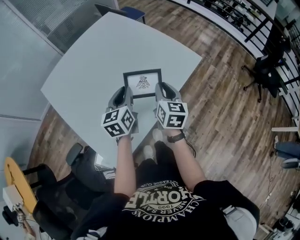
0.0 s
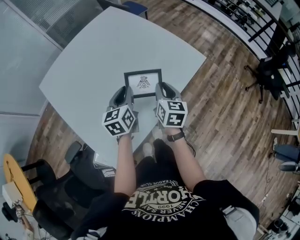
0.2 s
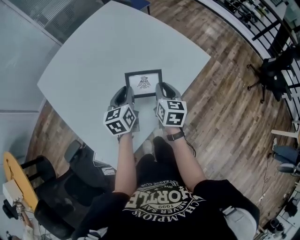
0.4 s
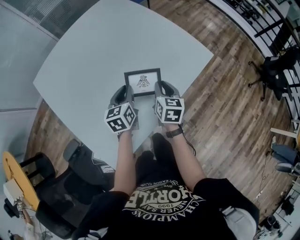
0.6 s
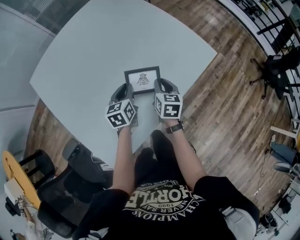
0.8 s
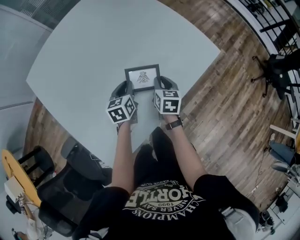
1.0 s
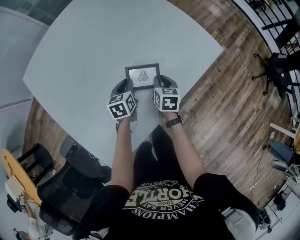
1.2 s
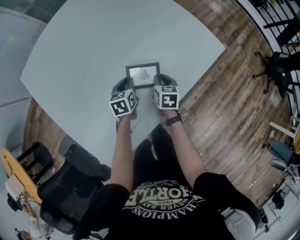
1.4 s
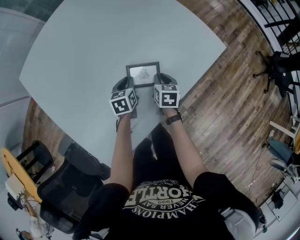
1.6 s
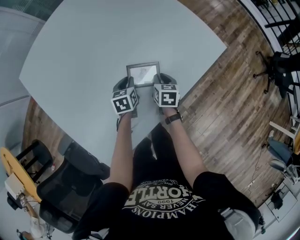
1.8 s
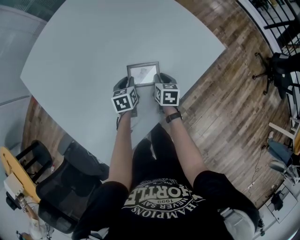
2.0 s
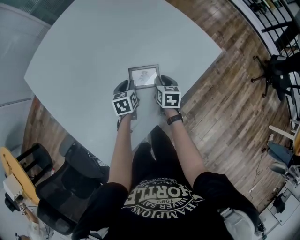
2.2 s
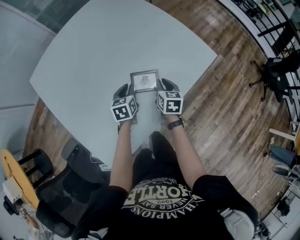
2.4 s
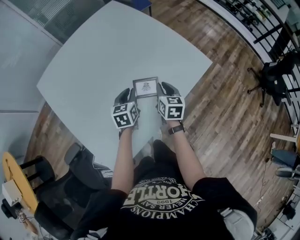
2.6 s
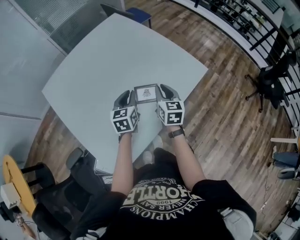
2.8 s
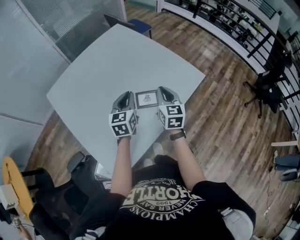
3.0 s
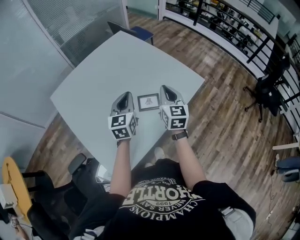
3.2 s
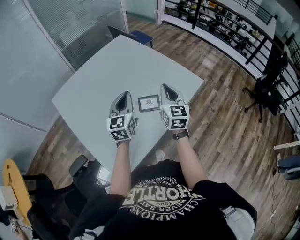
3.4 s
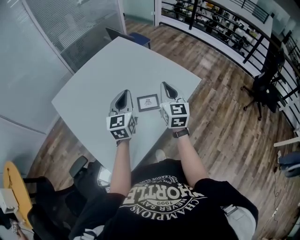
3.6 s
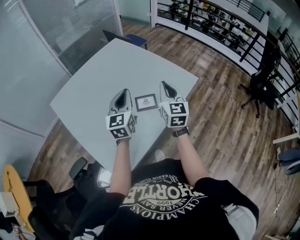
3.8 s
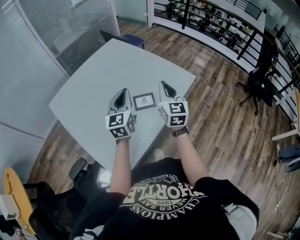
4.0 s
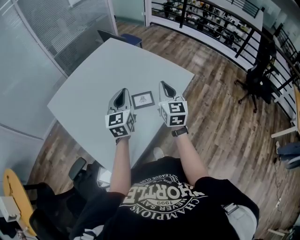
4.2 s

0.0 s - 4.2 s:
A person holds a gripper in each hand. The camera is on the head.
0.0 s - 1.4 s: The grippers both shift downward and forward by about 35 cm. The right gripper swivels some 30 degrees. The left gripper changes its angle by roughly 30 degrees.
1.4 s - 2.8 s: Both grippers travel together upward, roughly 25 cm. The right gripper turns by approximately 30 degrees, while the left gripper turns by some 20 degrees.
2.8 s - 4.2 s: The grippers both shift upward and backward by about 20 cm. The right gripper rotates roughly 20 degrees, while the left gripper rotates about 20 degrees.

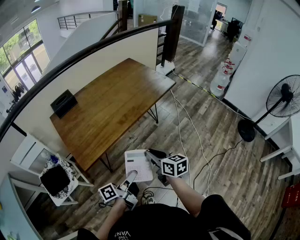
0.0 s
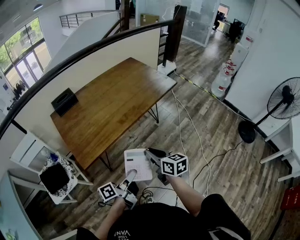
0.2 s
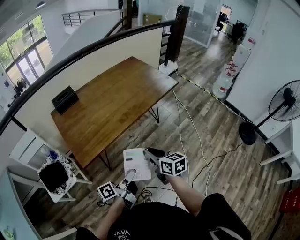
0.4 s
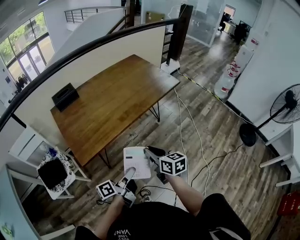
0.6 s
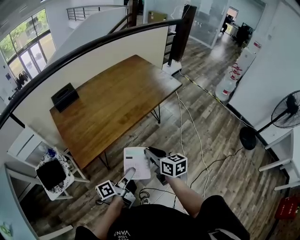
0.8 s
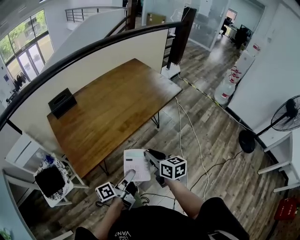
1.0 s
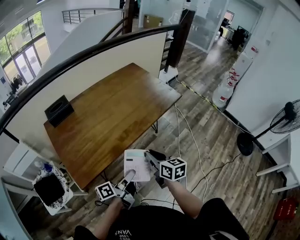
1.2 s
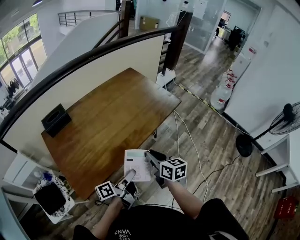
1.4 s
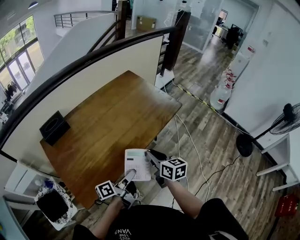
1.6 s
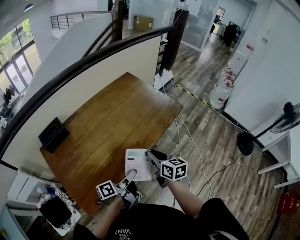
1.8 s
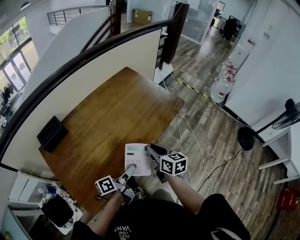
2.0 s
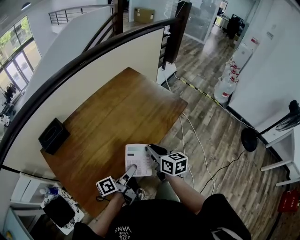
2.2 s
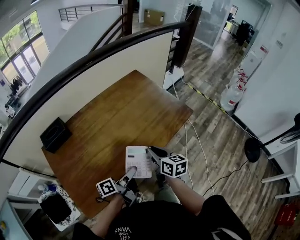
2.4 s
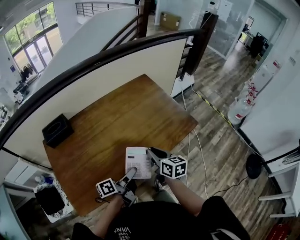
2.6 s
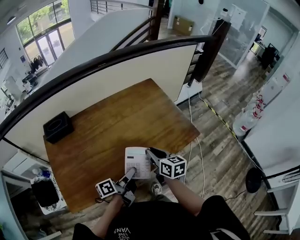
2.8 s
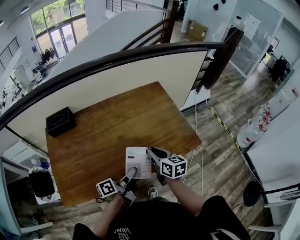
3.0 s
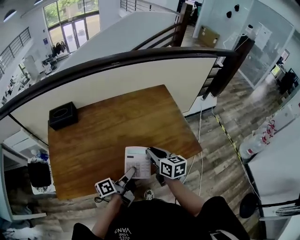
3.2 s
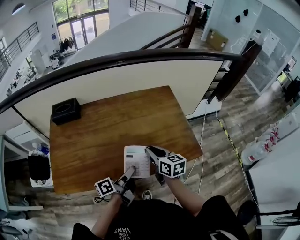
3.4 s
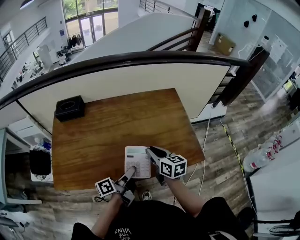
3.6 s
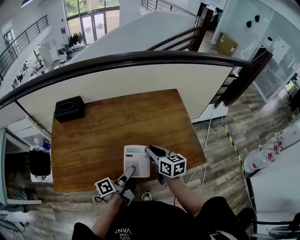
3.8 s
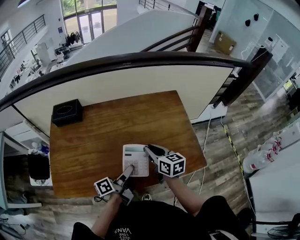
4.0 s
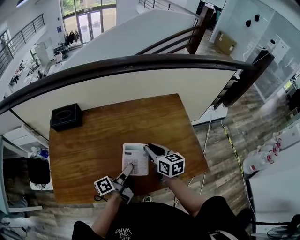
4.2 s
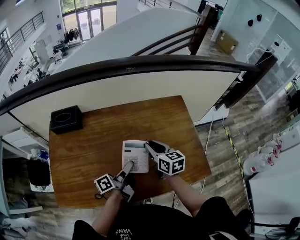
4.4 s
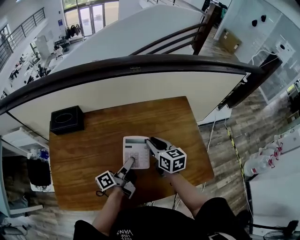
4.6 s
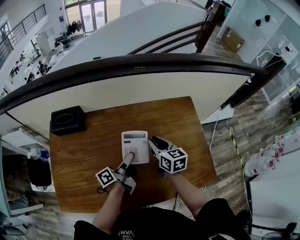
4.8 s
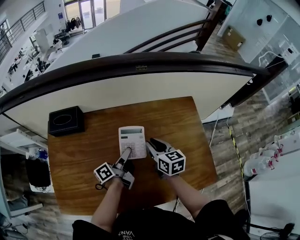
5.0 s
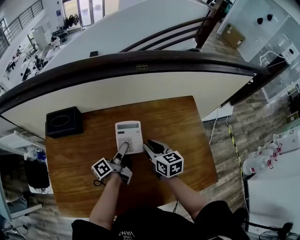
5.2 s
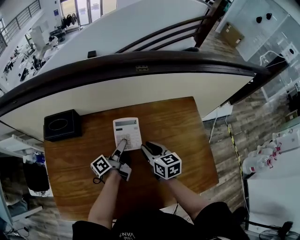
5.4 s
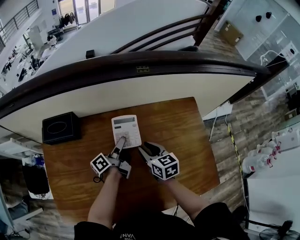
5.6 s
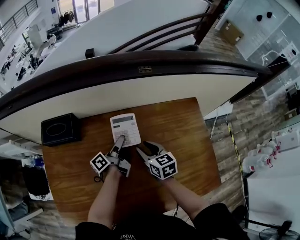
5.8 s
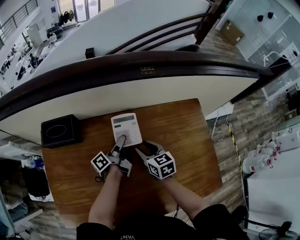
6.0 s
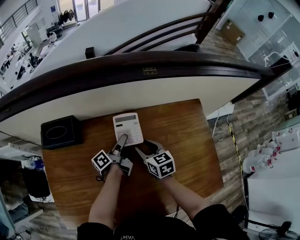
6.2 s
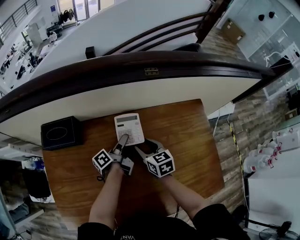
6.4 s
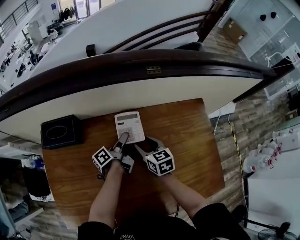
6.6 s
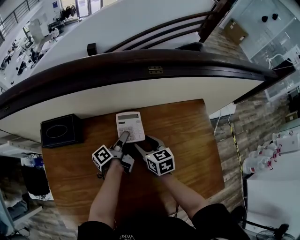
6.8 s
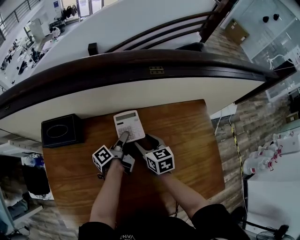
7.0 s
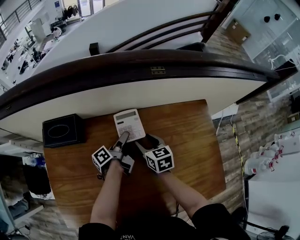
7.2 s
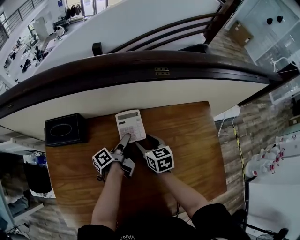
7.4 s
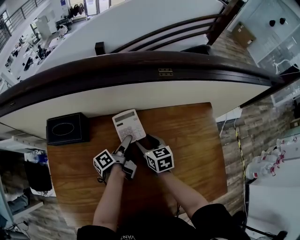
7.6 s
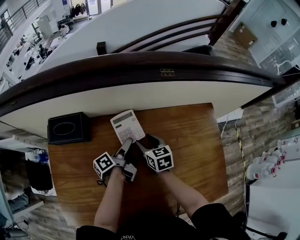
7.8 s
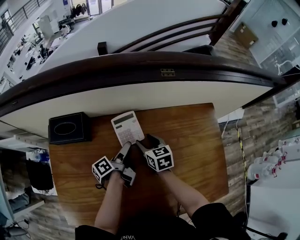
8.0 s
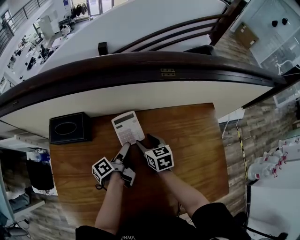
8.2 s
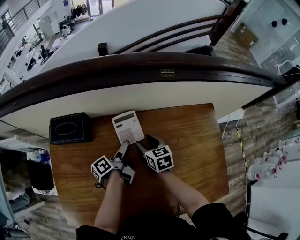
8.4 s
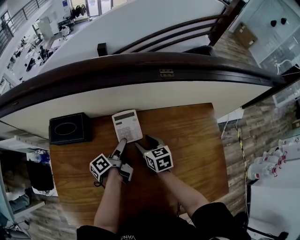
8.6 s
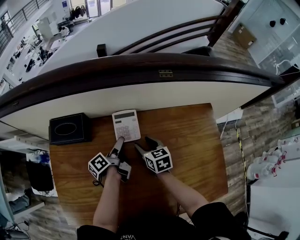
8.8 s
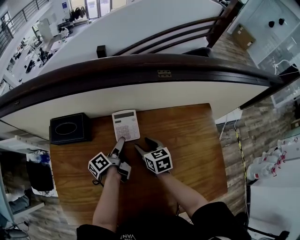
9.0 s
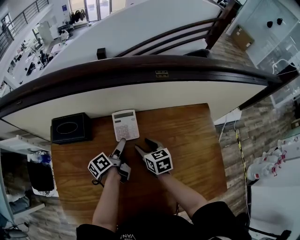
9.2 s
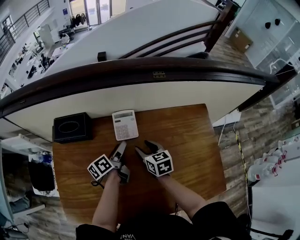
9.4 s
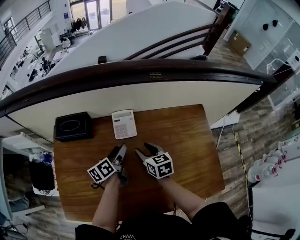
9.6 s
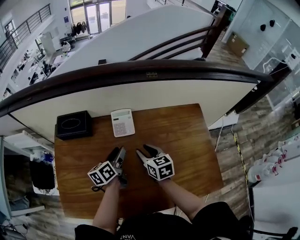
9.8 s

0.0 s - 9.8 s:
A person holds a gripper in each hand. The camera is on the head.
0.0 s - 1.4 s: The right gripper shifts by roughly 20 cm.
1.4 s - 2.8 s: The right gripper changes place by roughly 25 cm.
2.8 s - 4.2 s: The right gripper changes place by approximately 15 cm, and rotates about 20 degrees.
4.2 s - 5.6 s: The right gripper ends up roughly 15 cm from where it was.
5.6 s - 7.0 s: The right gripper shifts by approximately 10 cm, and opens its fingers.
8.4 s - 9.8 s: The right gripper moves approximately 15 cm.

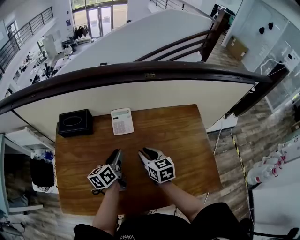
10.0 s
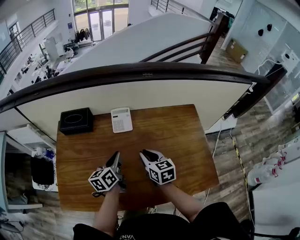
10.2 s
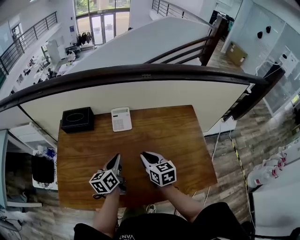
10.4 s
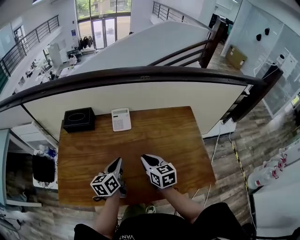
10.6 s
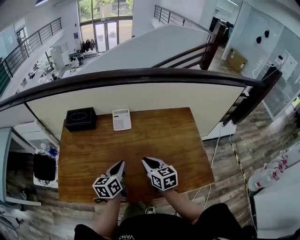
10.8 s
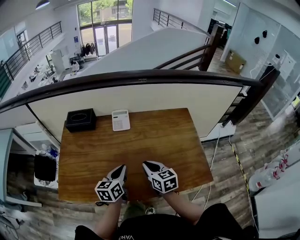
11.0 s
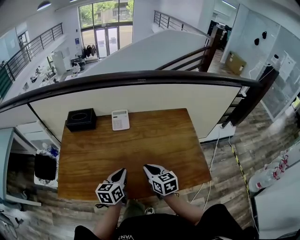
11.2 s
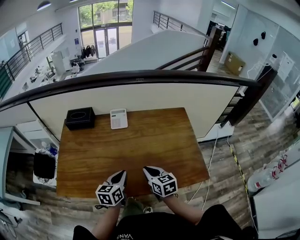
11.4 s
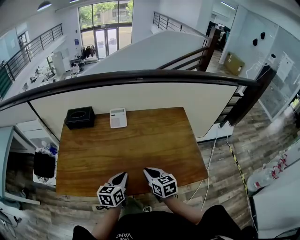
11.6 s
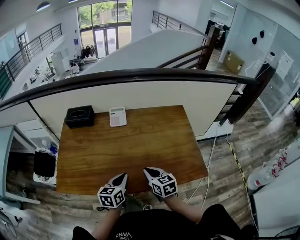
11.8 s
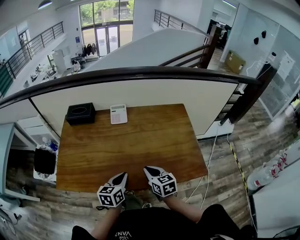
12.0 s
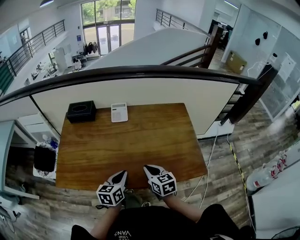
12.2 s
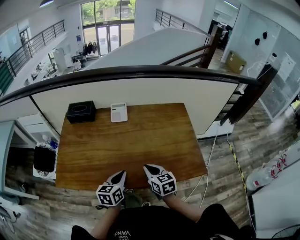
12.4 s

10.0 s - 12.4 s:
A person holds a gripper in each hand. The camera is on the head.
10.0 s - 11.2 s: The right gripper ends up approximately 20 cm from where it was.
11.2 s - 12.4 s: The right gripper shifts by approximately 5 cm.

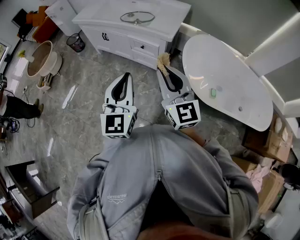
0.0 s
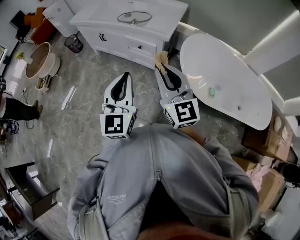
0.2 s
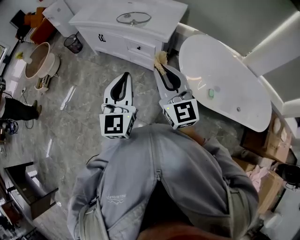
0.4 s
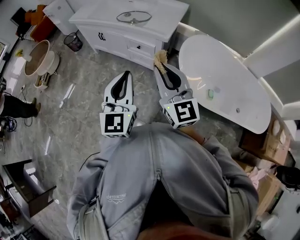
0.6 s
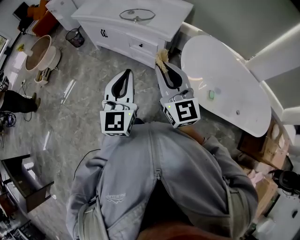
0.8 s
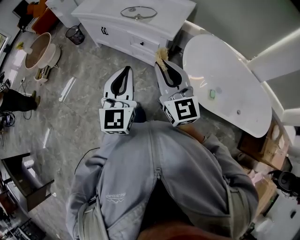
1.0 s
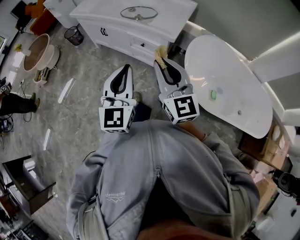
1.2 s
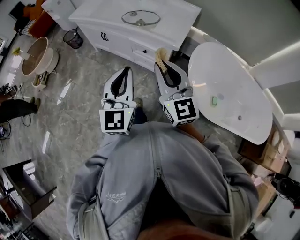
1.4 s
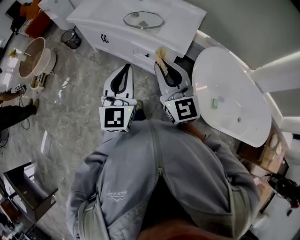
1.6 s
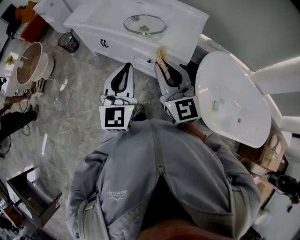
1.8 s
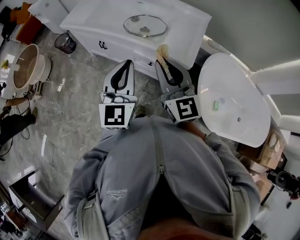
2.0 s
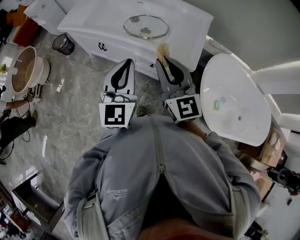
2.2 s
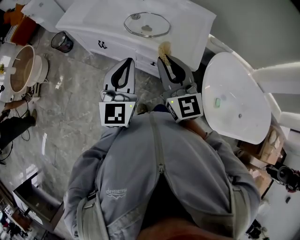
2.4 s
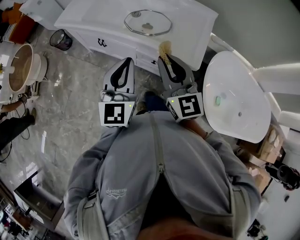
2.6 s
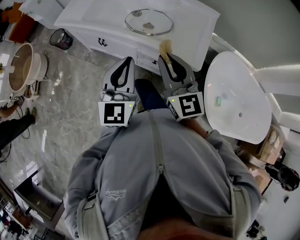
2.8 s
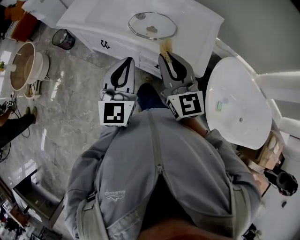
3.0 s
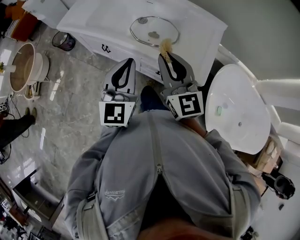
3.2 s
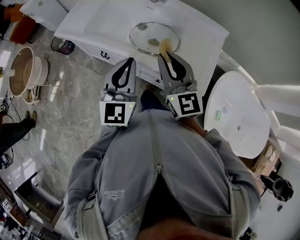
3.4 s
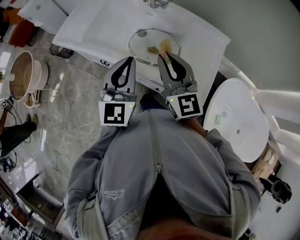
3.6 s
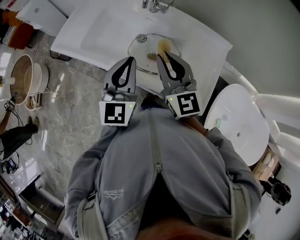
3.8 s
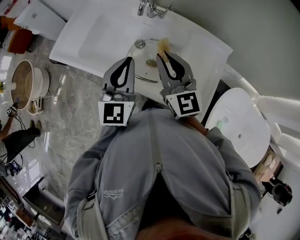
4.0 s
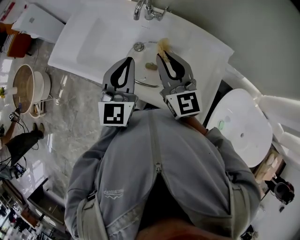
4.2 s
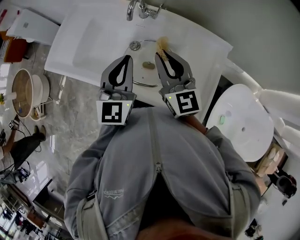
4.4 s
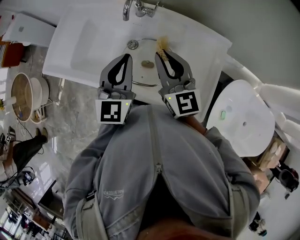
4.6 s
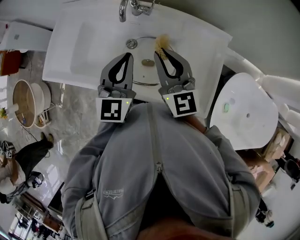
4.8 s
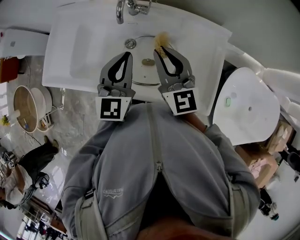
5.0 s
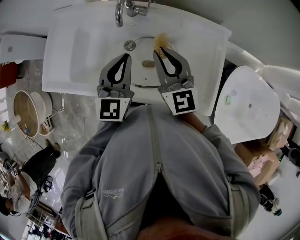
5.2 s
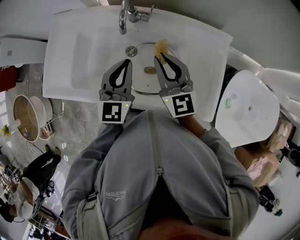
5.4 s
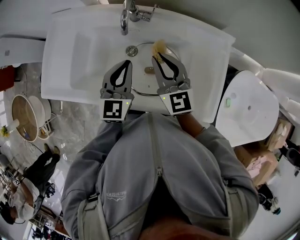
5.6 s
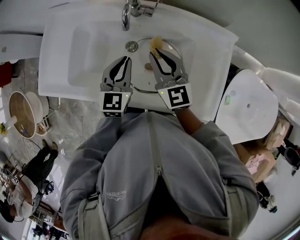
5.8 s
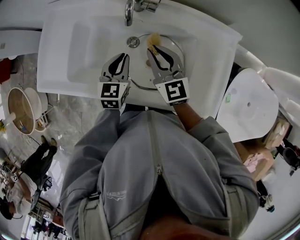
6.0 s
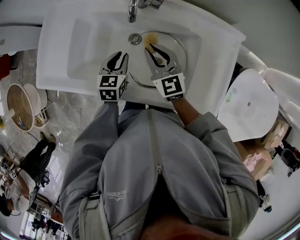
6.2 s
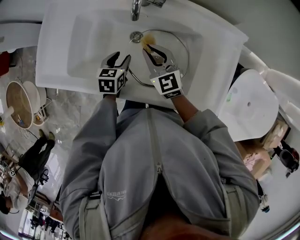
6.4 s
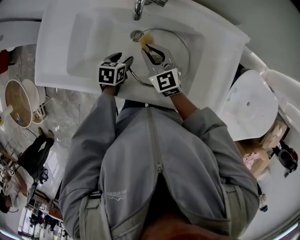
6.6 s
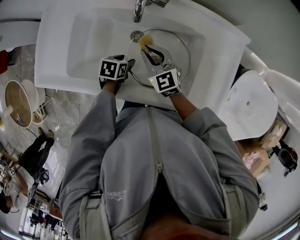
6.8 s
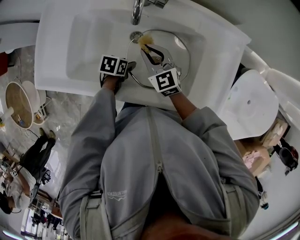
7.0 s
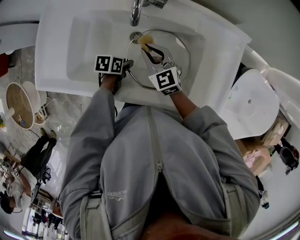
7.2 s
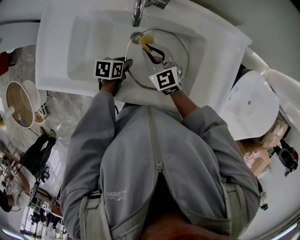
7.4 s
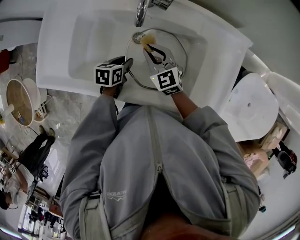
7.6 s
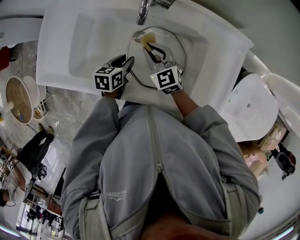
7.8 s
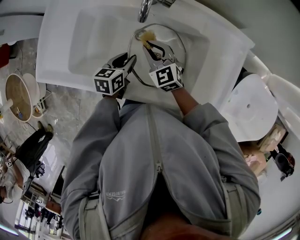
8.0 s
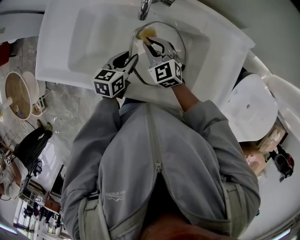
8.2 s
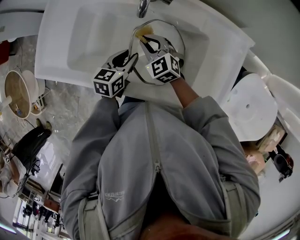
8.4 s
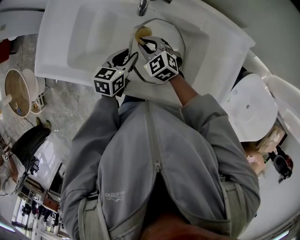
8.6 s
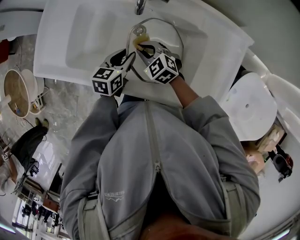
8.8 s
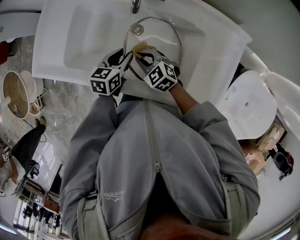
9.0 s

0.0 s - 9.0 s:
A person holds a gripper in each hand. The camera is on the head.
0.0 s - 1.6 s: Both grippers move forward, approximately 20 cm.
1.6 s - 3.0 s: Both grippers move forward, roughly 20 cm.
3.0 s - 4.4 s: The two grippers go some 30 cm forward.
4.4 s - 6.0 s: The grippers both shift downward and forward by approximately 20 cm. The left gripper swivels some 30 degrees.
6.0 s - 7.6 s: The two grippers go some 10 cm downward. The left gripper changes its angle by some 40 degrees.
7.6 s - 9.0 s: The right gripper is displaced backward by roughly 10 cm, and swivels approximately 30 degrees, while the left gripper travels upward by roughly 5 cm.
